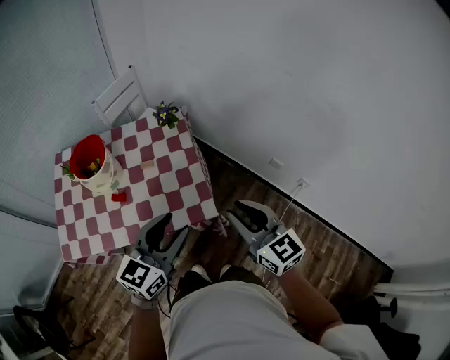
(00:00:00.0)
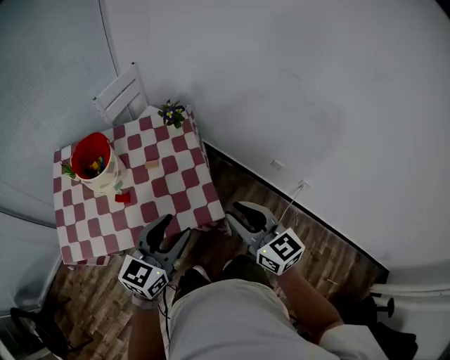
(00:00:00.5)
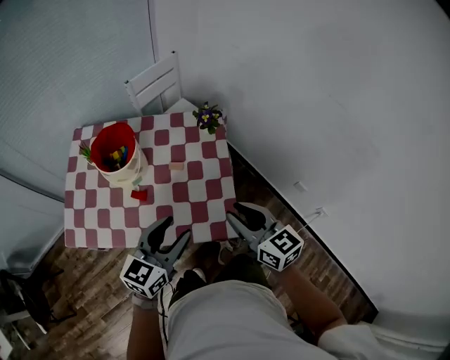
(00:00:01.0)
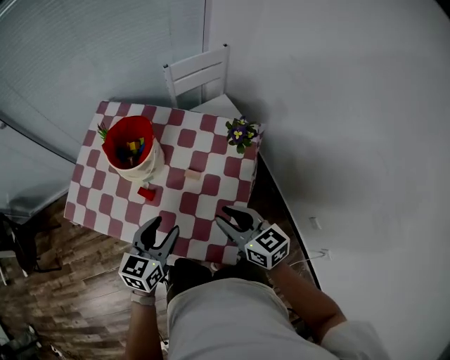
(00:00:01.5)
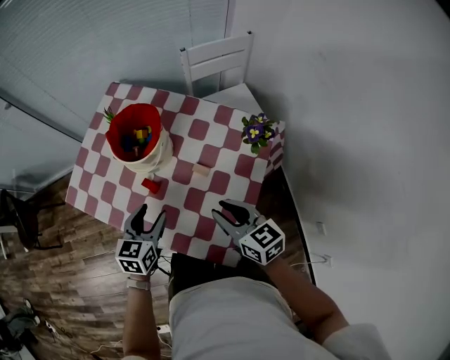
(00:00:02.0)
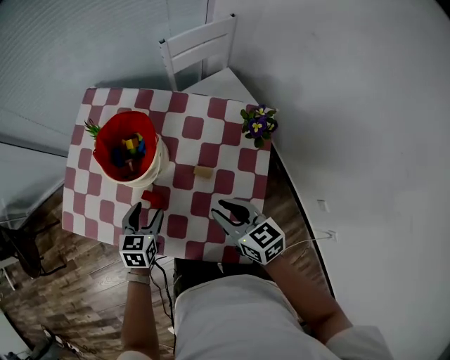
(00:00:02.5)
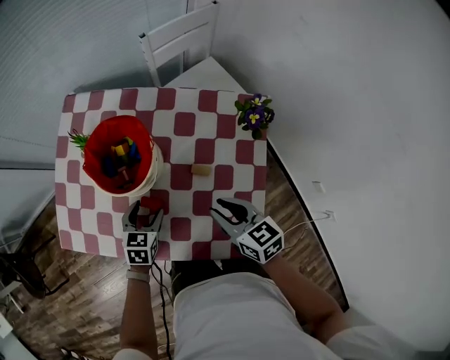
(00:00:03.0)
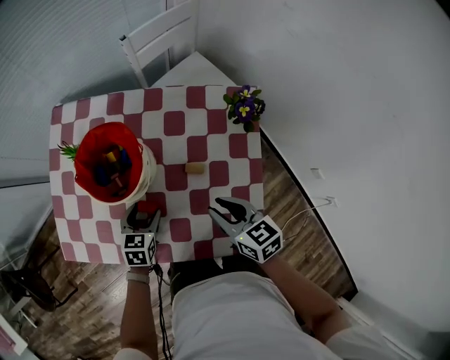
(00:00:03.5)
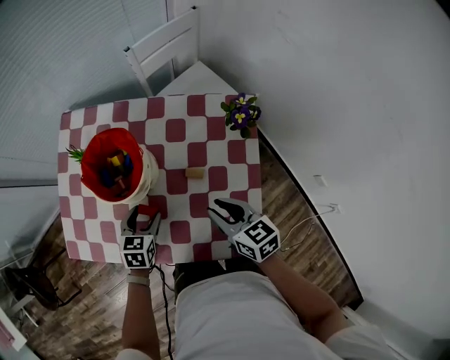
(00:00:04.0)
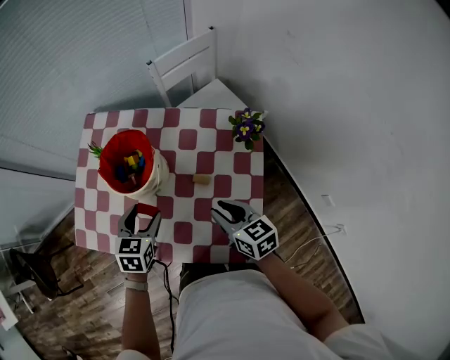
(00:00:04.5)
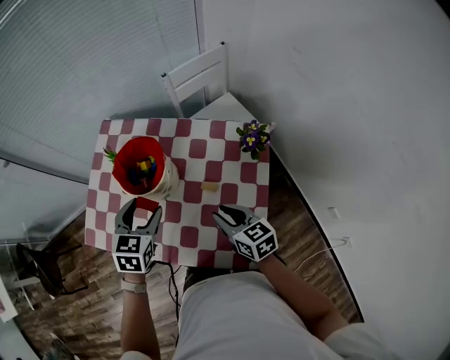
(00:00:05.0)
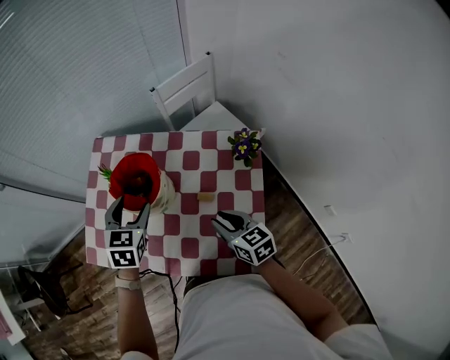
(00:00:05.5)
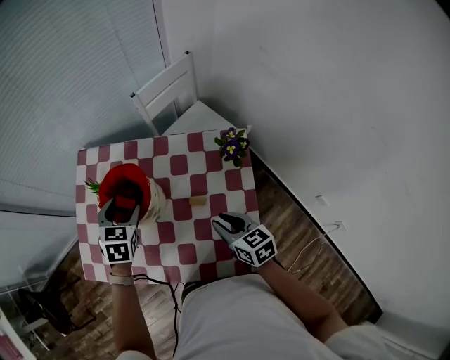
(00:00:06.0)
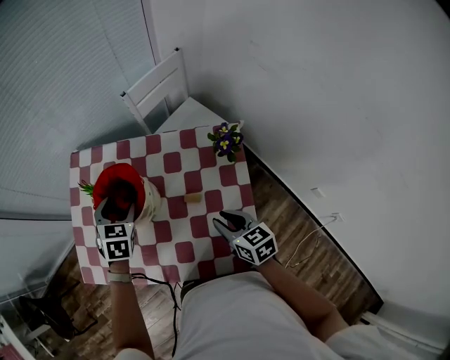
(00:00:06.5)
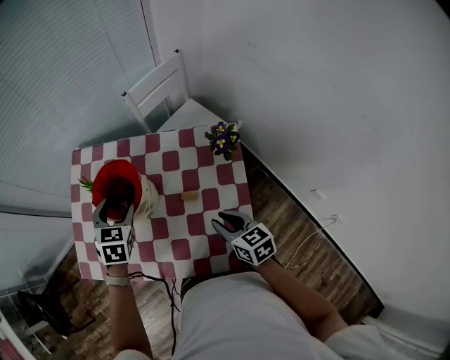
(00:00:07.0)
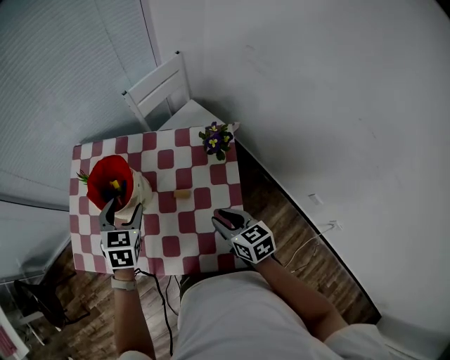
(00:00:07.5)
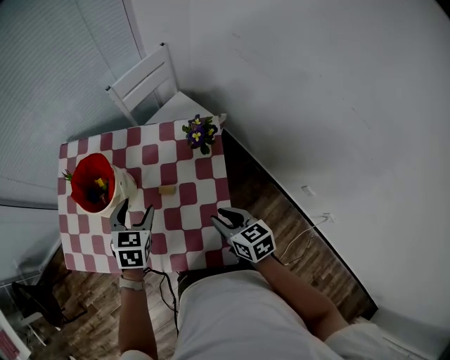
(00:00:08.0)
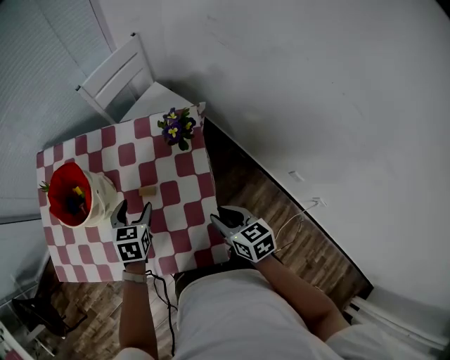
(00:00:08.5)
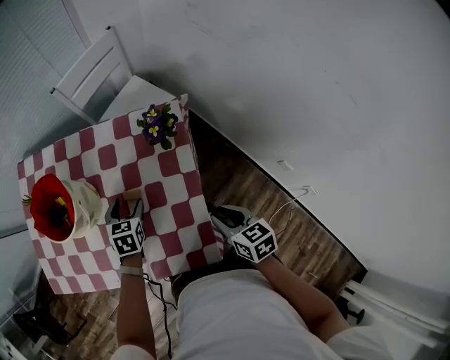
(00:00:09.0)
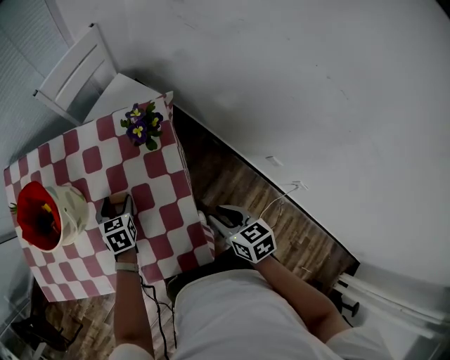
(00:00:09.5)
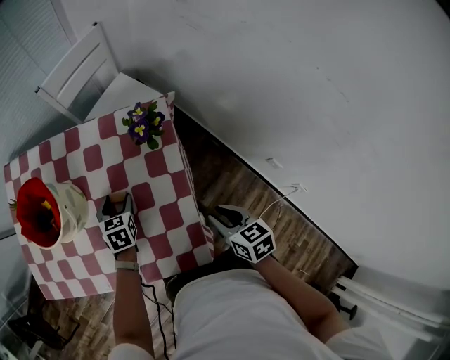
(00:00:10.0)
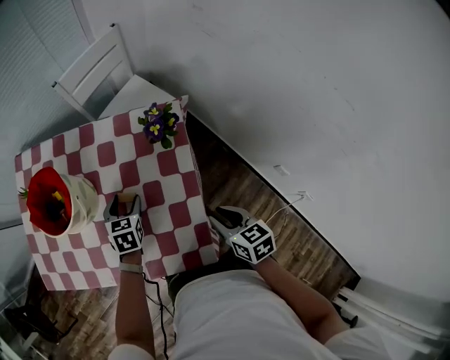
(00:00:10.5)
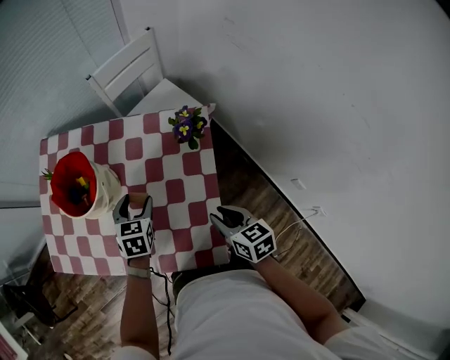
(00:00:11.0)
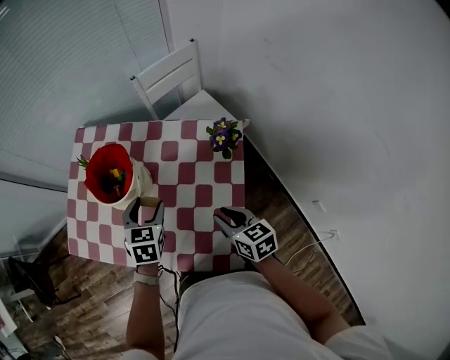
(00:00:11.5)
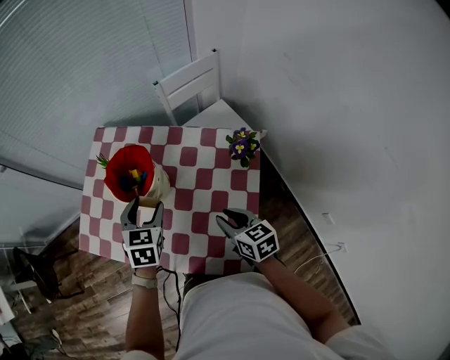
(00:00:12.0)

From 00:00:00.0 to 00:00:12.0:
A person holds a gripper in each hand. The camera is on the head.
From 00:00:00.0 to 00:00:02.0: The right gripper moves about 30 cm, and changes its angle by approximately 50 degrees, while the left gripper ends up about 30 cm from where it was, and changes its angle by about 60 degrees.
From 00:00:02.0 to 00:00:04.0: The left gripper is displaced downward and forward by about 15 cm, and turns by roughly 20 degrees; the right gripper heads downward, covering about 5 cm, and changes its angle by roughly 20 degrees.
From 00:00:04.0 to 00:00:06.0: The left gripper shifts some 20 cm upward and forward.
From 00:00:06.0 to 00:00:08.0: The grippers both shift to the right and backward by about 15 cm.
From 00:00:08.0 to 00:00:10.0: The right gripper moves to the right and downward, approximately 10 cm. The left gripper heads downward, covering roughly 15 cm.
From 00:00:10.0 to 00:00:12.0: The left gripper is displaced upward and to the left by roughly 25 cm. Meanwhile the right gripper moves to the left, forward and upward, about 20 cm, and changes its angle by roughly 20 degrees.

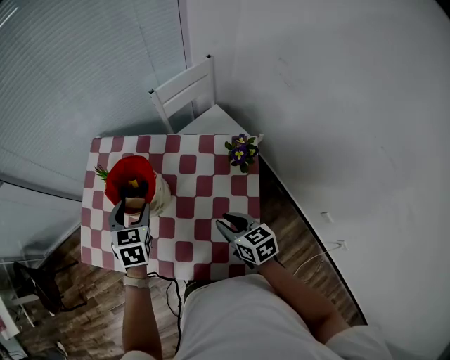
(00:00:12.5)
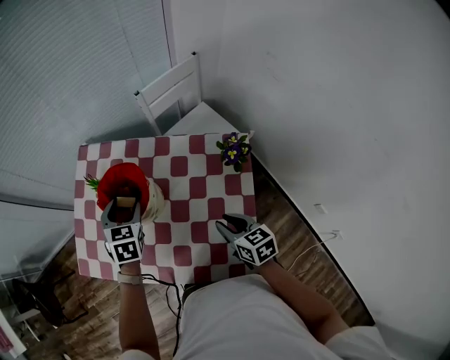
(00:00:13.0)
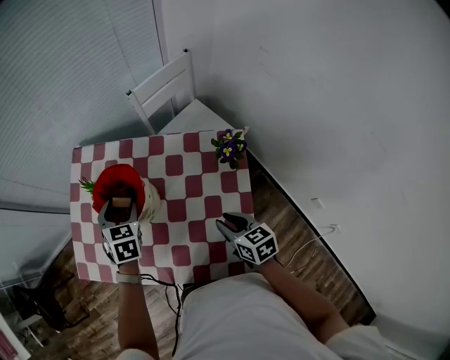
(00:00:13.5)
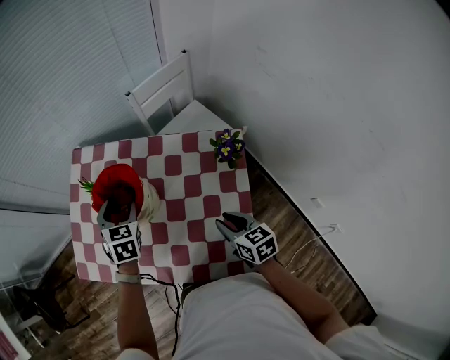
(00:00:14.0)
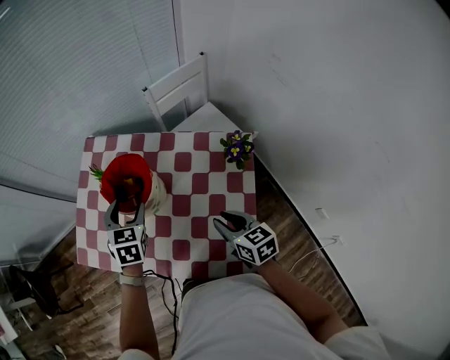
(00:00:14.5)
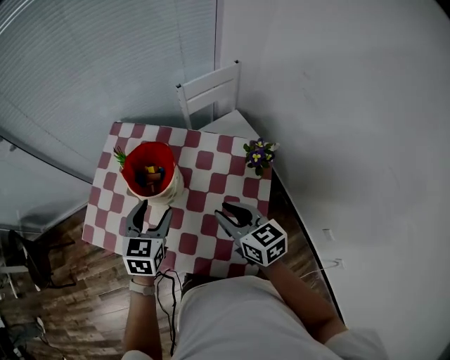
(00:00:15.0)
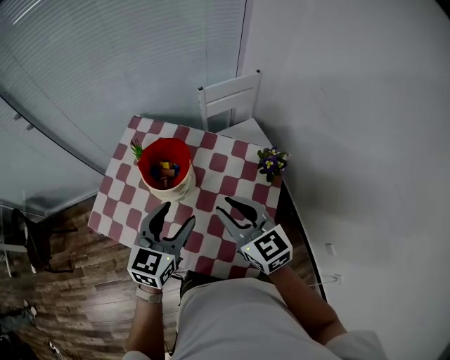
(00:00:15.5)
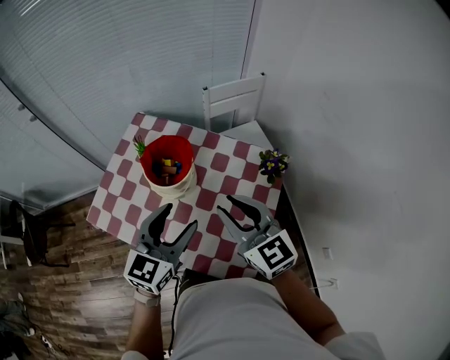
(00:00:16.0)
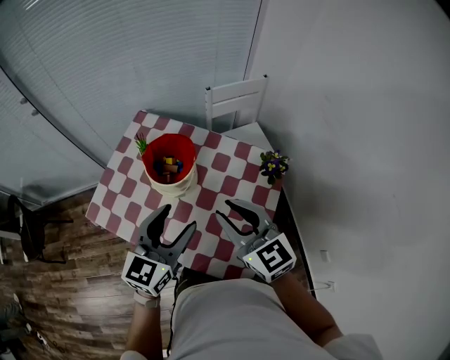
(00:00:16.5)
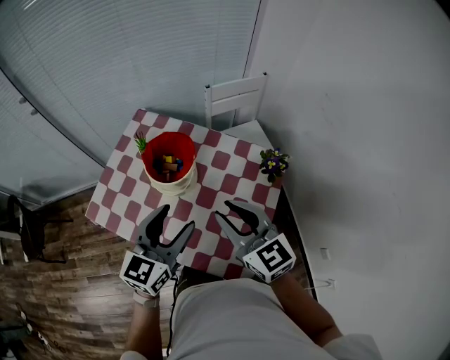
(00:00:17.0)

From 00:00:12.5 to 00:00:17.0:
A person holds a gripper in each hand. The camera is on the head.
From 00:00:12.5 to 00:00:14.5: There are only small adjustments of the grippers.
From 00:00:14.5 to 00:00:17.0: The left gripper heads backward and upward, covering roughly 20 cm, and turns by about 40 degrees, while the right gripper is displaced upward by roughly 15 cm, and rotates about 40 degrees.

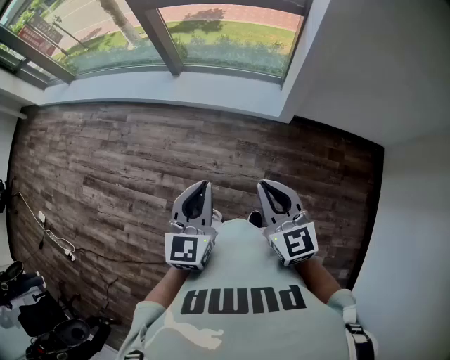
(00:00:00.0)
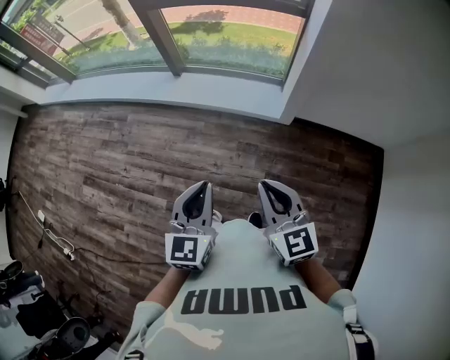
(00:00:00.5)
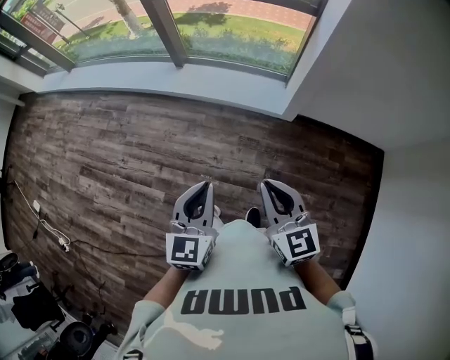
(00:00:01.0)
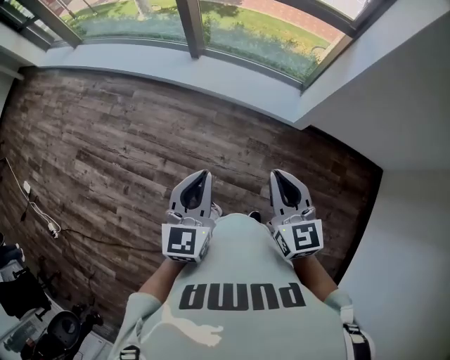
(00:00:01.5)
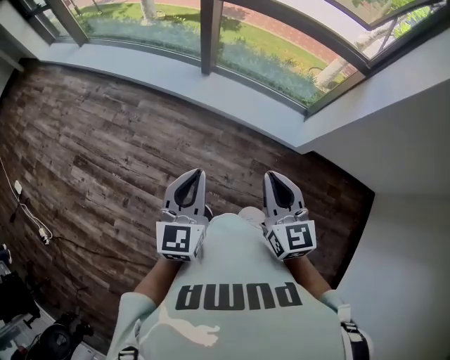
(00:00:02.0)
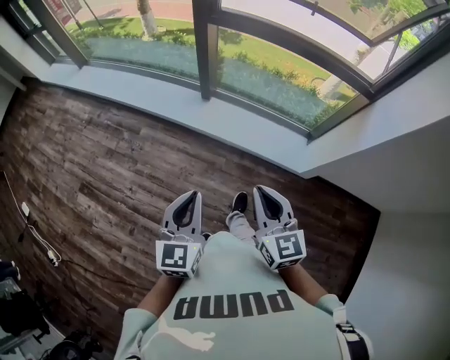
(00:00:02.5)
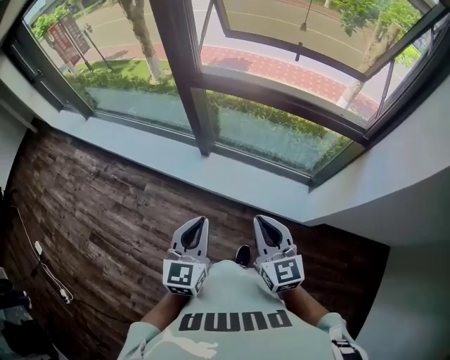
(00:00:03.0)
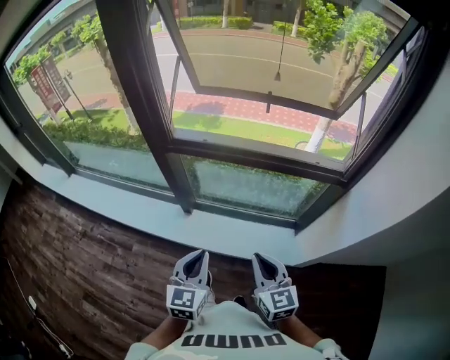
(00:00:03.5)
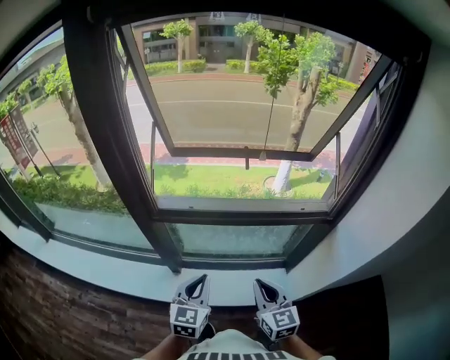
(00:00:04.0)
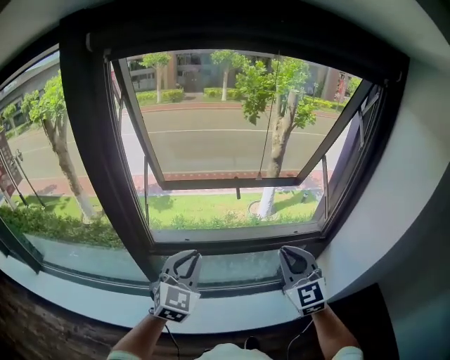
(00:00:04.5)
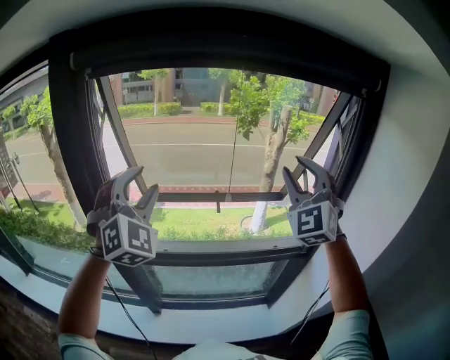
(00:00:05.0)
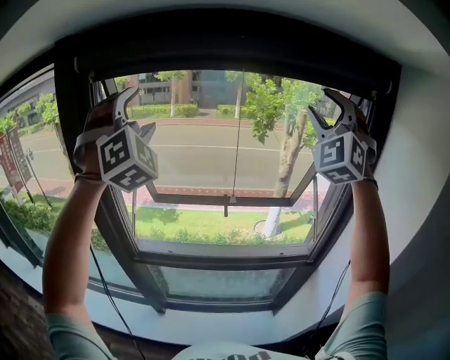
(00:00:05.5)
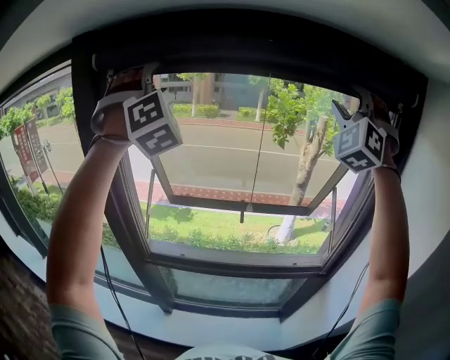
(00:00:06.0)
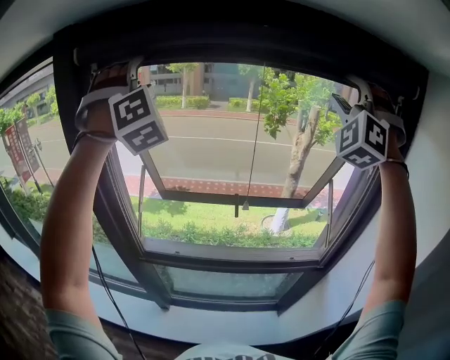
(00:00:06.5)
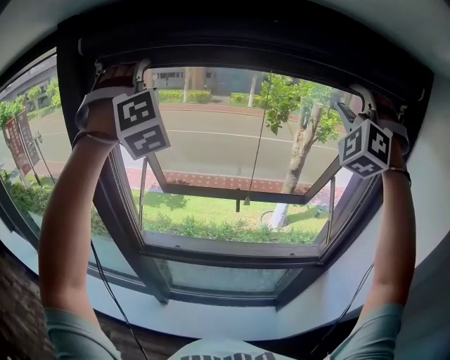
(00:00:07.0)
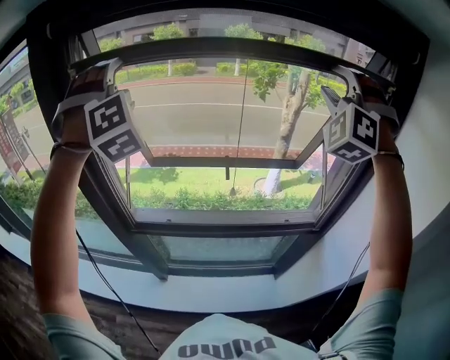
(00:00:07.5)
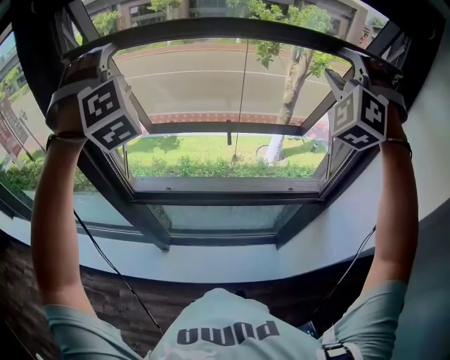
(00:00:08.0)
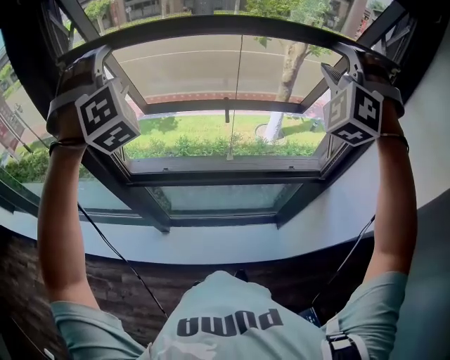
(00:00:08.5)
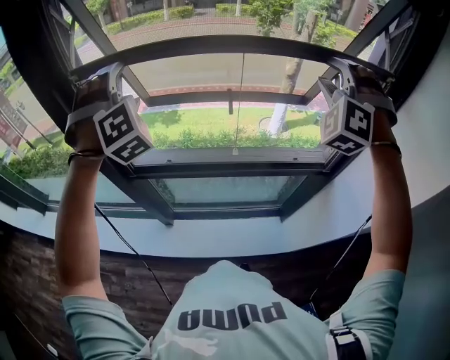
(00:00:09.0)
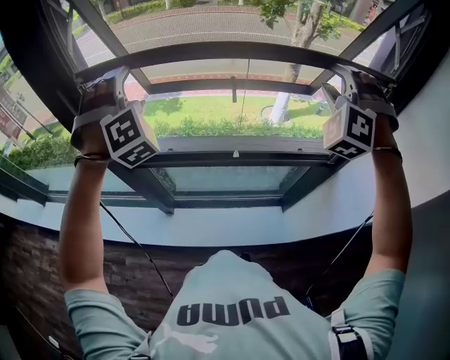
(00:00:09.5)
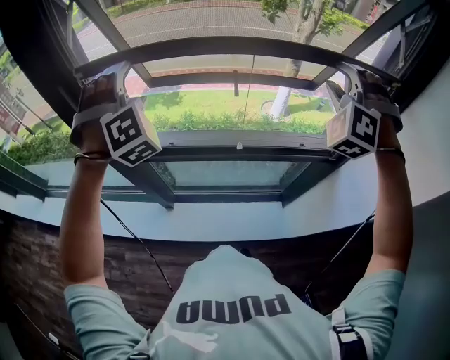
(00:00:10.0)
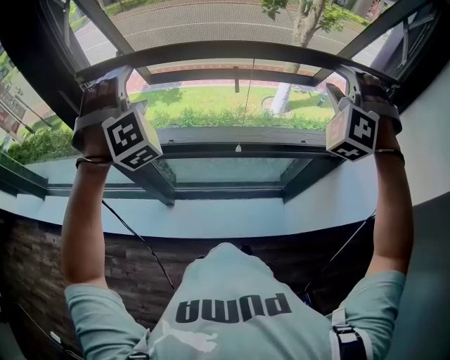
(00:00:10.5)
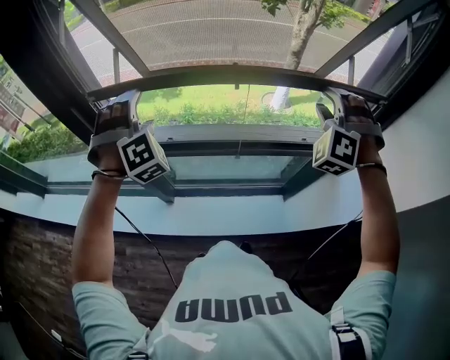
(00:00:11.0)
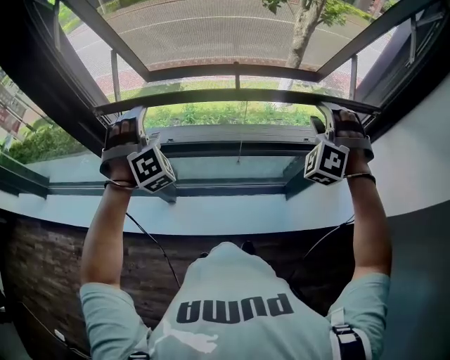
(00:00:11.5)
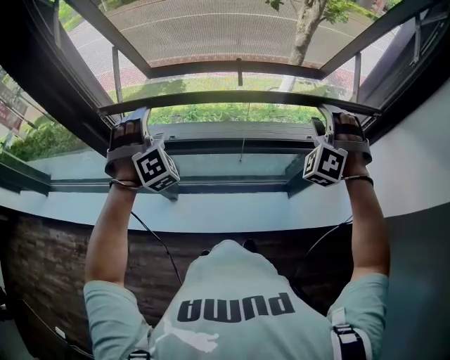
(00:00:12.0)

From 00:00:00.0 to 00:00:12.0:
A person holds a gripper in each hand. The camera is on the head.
From 00:00:00.0 to 00:00:02.0: Both grippers travel together to the left and forward, about 30 cm.
From 00:00:02.0 to 00:00:04.0: The two grippers travel together, forward, some 50 cm. The left gripper turns by roughly 30 degrees.
From 00:00:04.0 to 00:00:06.0: Both grippers travel together upward and forward, roughly 70 cm. The left gripper twists some 70 degrees clockwise, seen from behind, and opens; the right gripper twists approximately 80 degrees counterclockwise, seen from behind, and opens up.
From 00:00:06.0 to 00:00:08.0: Both grippers travel together downward, about 15 cm. The right gripper turns by roughly 20 degrees.
From 00:00:08.0 to 00:00:10.0: The grippers both shift downward by some 15 cm.
From 00:00:10.0 to 00:00:12.0: The grippers both shift downward by some 15 cm.
